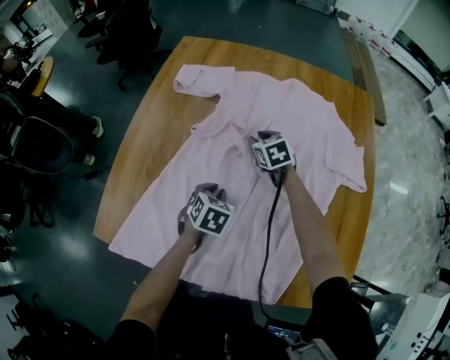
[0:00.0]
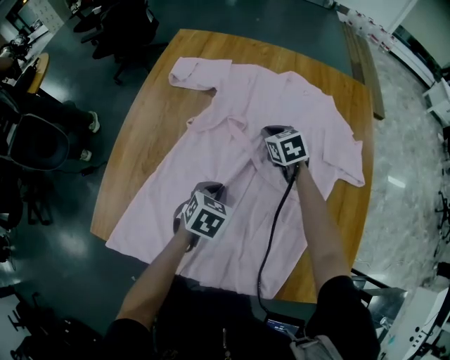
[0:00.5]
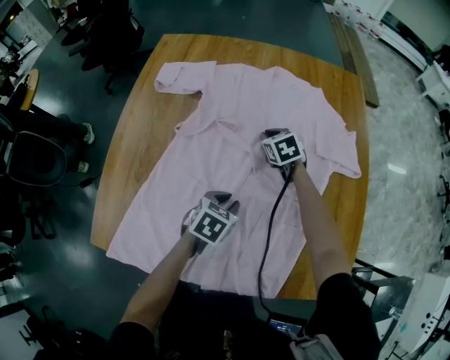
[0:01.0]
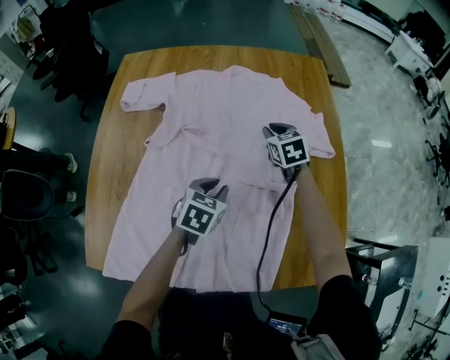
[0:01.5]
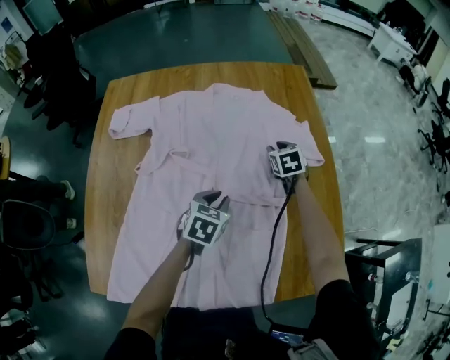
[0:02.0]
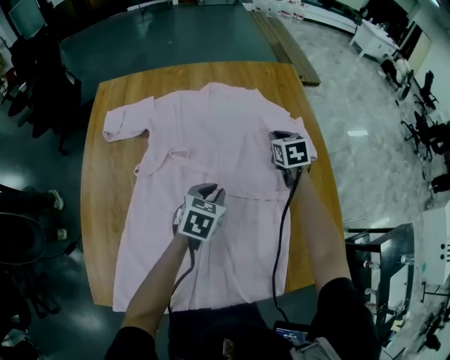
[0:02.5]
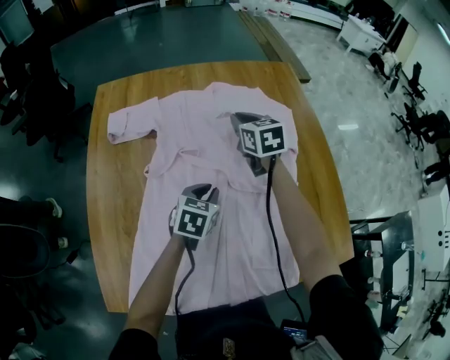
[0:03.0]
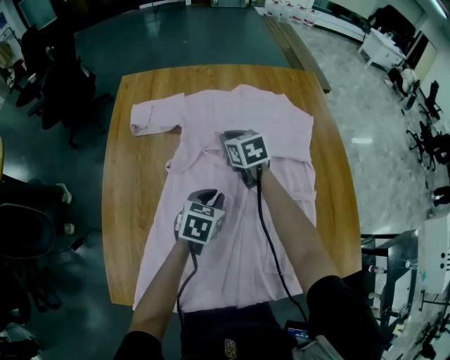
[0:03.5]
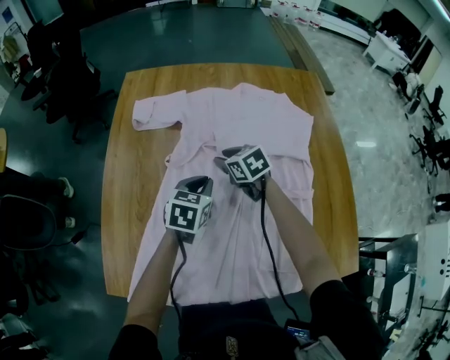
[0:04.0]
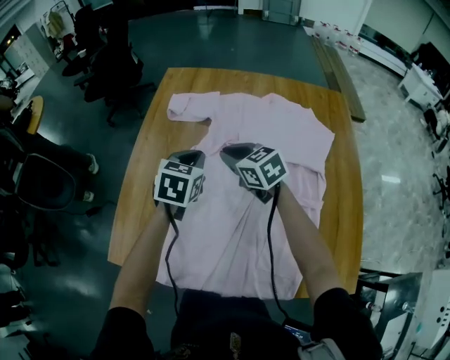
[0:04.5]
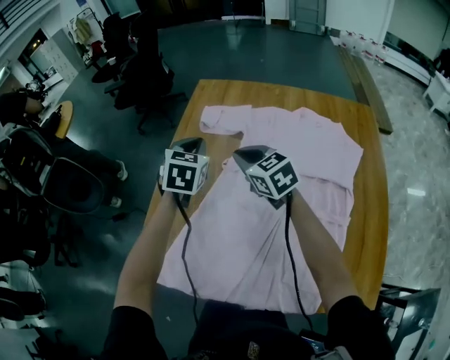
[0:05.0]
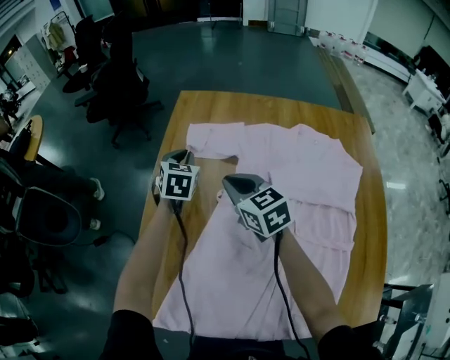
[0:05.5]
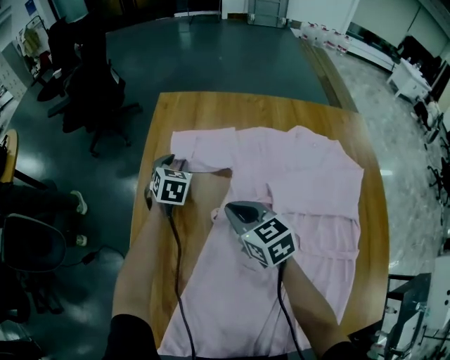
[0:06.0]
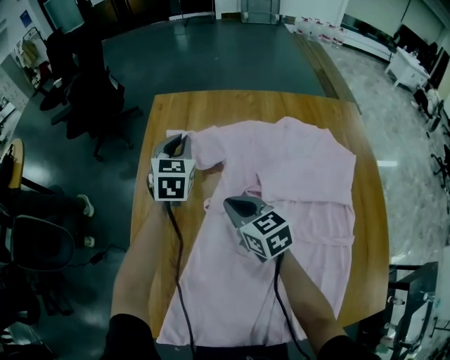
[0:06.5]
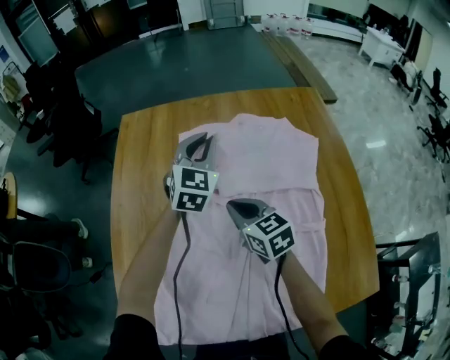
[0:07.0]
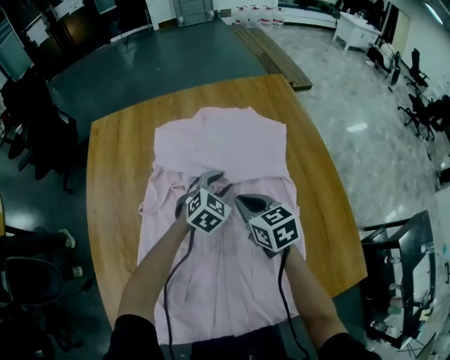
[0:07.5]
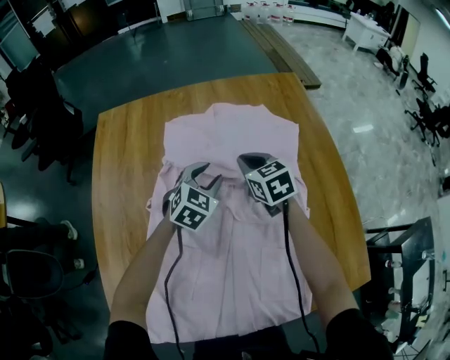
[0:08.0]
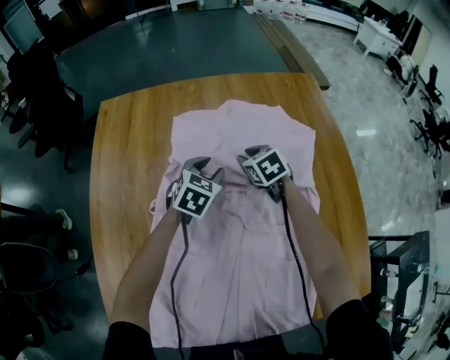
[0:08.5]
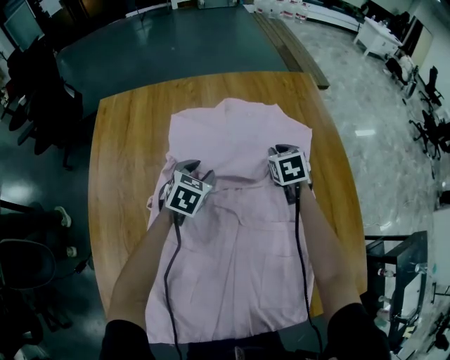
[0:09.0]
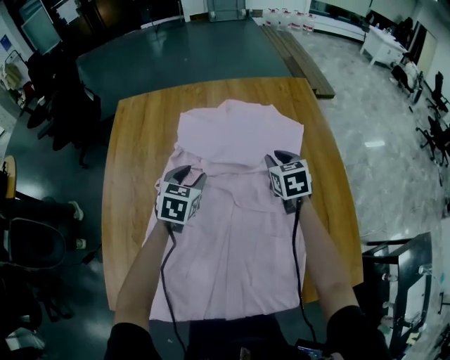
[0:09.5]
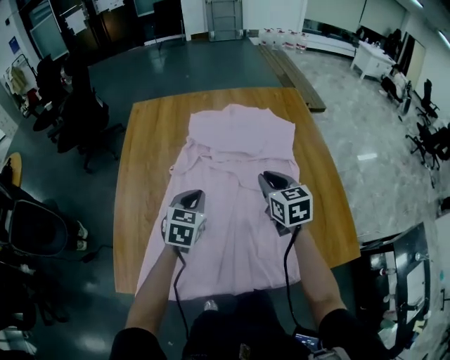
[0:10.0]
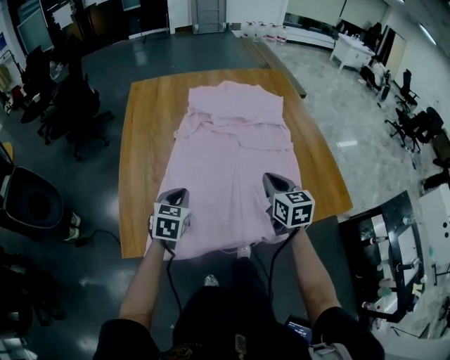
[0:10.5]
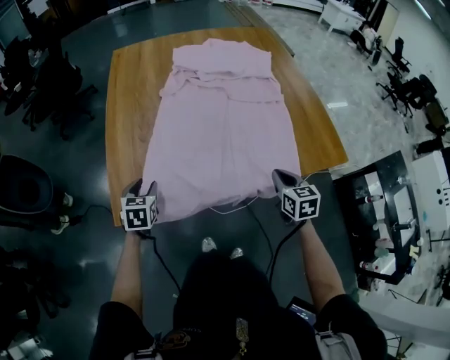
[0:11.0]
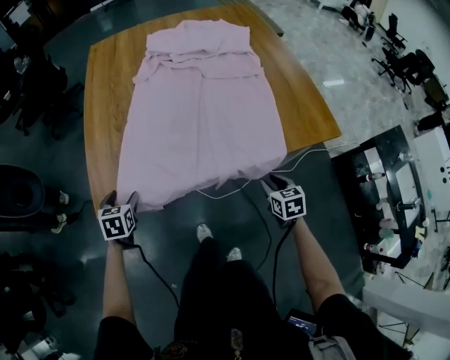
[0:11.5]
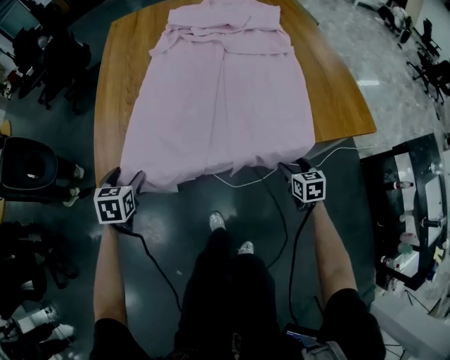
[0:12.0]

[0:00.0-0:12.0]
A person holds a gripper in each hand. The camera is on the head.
0:00.0 to 0:02.0: The right gripper ends up roughly 30 cm from where it was, rotates about 30 degrees, and closes and opens again. The left gripper moves roughly 15 cm, and turns by about 20 degrees.
0:02.0 to 0:04.0: The right gripper moves some 15 cm upward and comes back, and changes its angle by roughly 30 degrees; the left gripper ends up roughly 15 cm from where it was.
0:04.0 to 0:06.0: The right gripper goes roughly 15 cm to the left and forward, reaches approximately 15 cm upward, then returns, and closes its fingers, while the left gripper travels forward and to the left by roughly 35 cm, turns by approximately 30 degrees, and opens.
0:06.0 to 0:08.0: The left gripper moves some 20 cm upward and comes back, swivels about 40 degrees, and closes, then opens again; the right gripper shifts by about 30 cm, and swivels about 20 degrees.
0:08.0 to 0:10.0: The right gripper heads backward, covering about 20 cm. The left gripper moves backward and to the left, about 25 cm, changes its angle by approximately 30 degrees, and closes its fingers.
0:10.0 to 0:12.0: The left gripper travels backward, to the left and downward by about 40 cm, rotates about 20 degrees, and opens its fingers. Meanwhile the right gripper moves backward and downward, about 50 cm, turns by approximately 20 degrees, and opens.

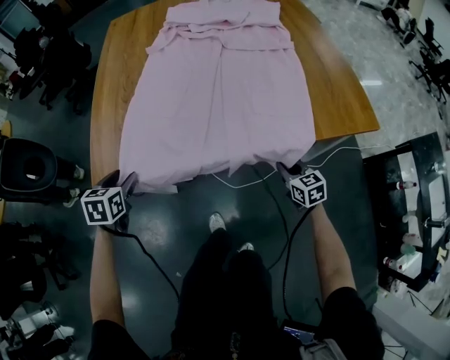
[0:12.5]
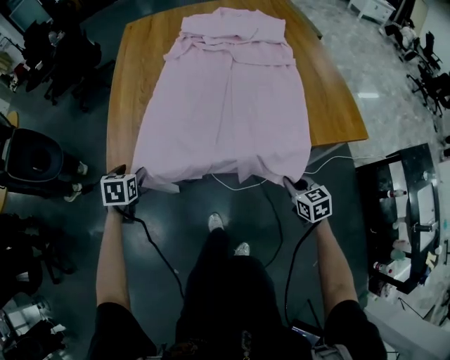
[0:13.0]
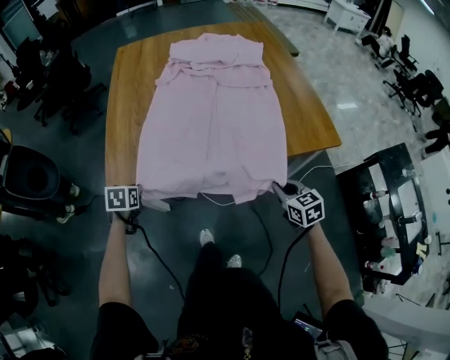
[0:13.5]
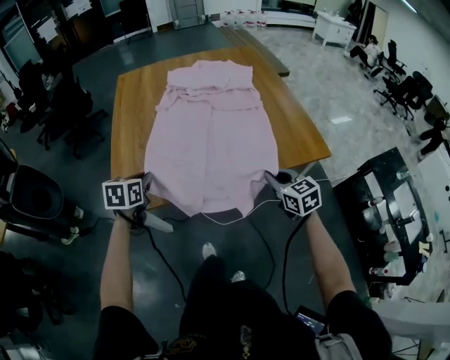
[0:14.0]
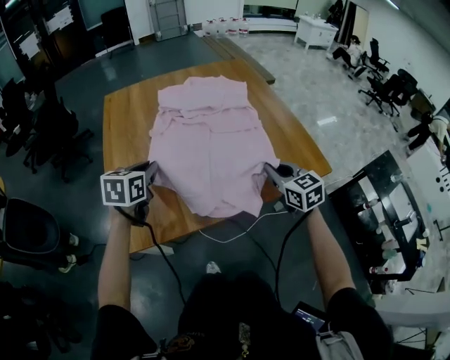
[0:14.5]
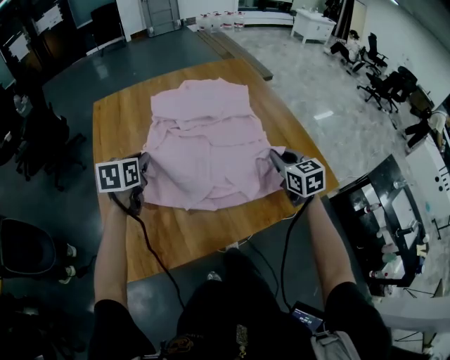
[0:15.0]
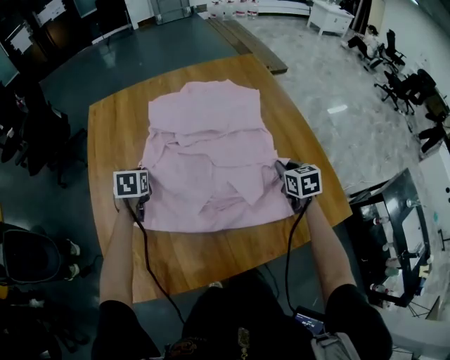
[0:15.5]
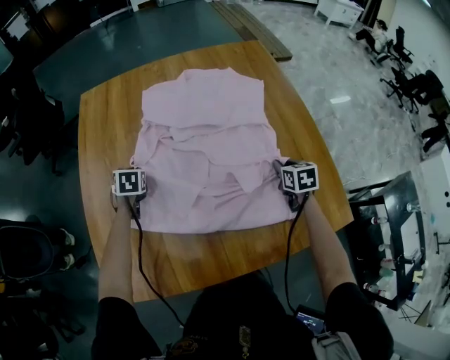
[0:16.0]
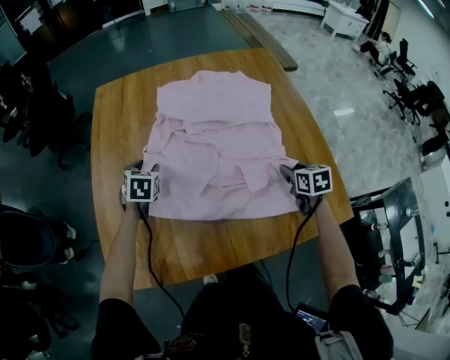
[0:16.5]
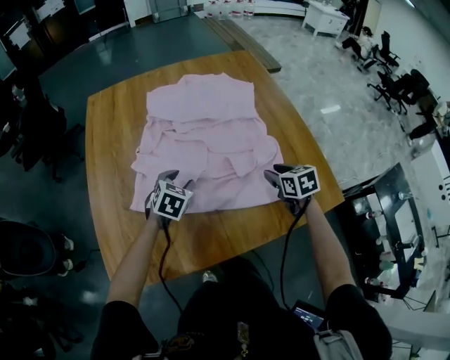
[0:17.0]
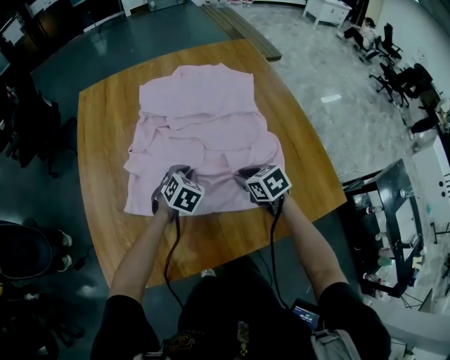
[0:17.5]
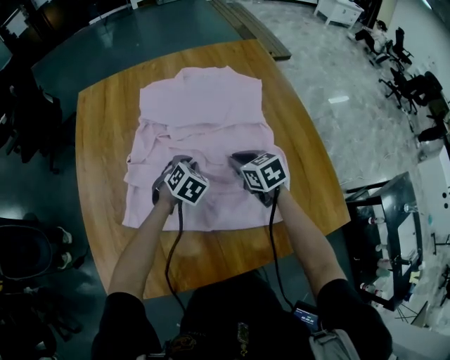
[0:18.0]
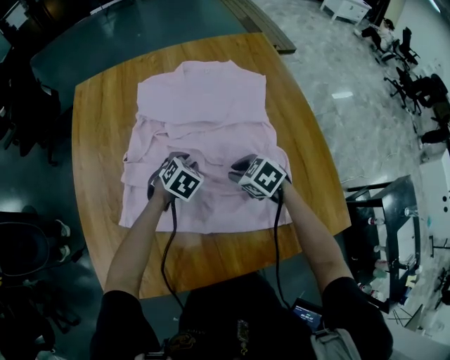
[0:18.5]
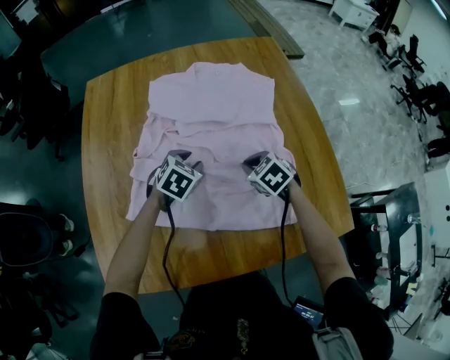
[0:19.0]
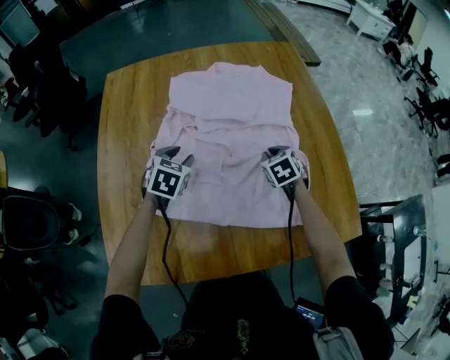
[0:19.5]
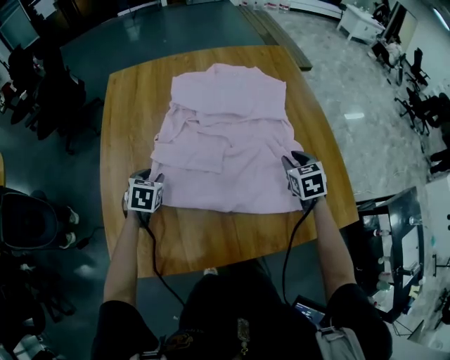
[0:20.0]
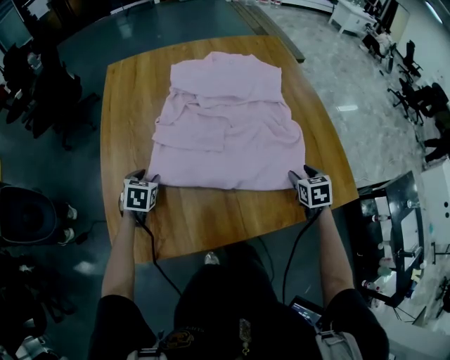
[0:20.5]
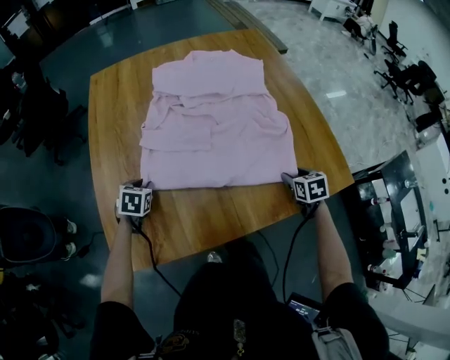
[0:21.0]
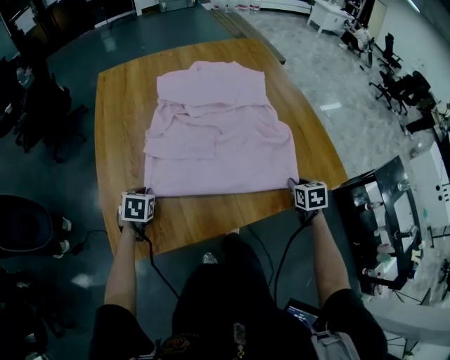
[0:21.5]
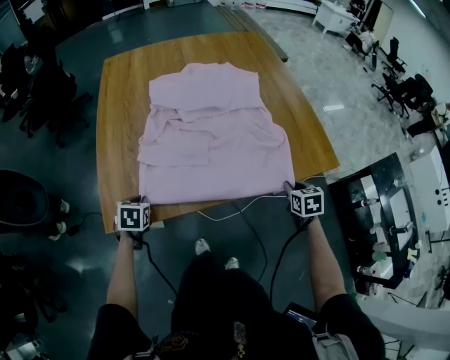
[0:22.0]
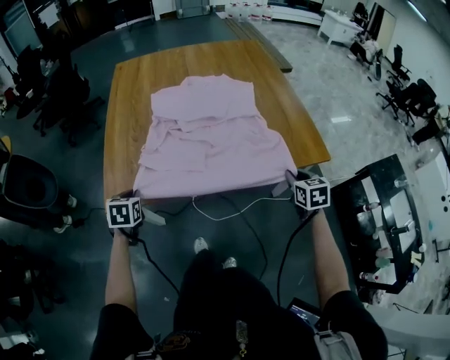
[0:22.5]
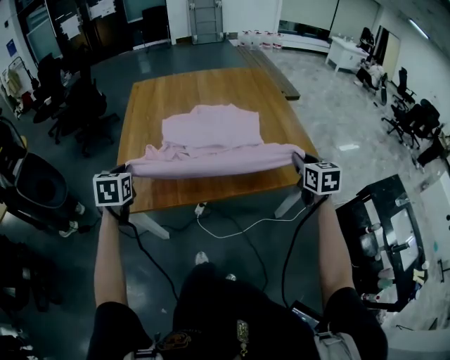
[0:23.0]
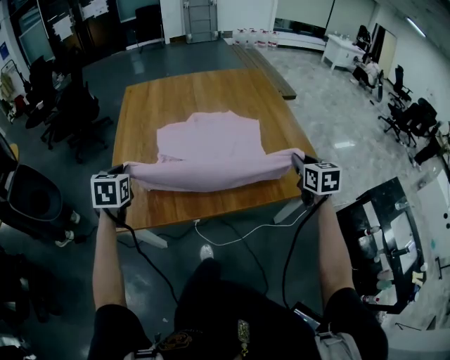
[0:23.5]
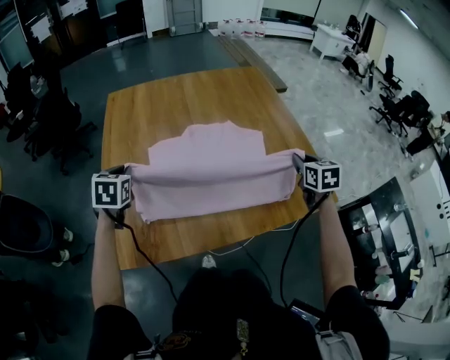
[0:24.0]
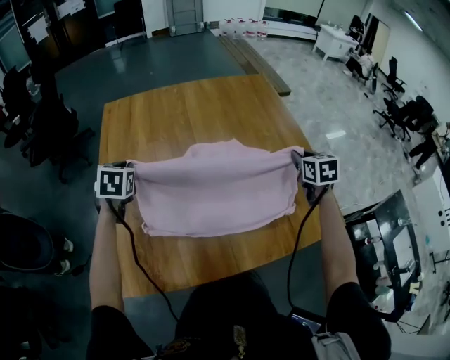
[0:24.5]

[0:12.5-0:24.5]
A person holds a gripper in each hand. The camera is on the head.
0:12.5 to 0:14.5: The left gripper shifts approximately 30 cm upward, forward and to the right, changes its angle by approximately 30 degrees, and closes up, while the right gripper goes roughly 35 cm upward.
0:14.5 to 0:16.5: The left gripper heads forward and downward, covering approximately 30 cm, rotates roughly 30 degrees, and opens its fingers, while the right gripper is displaced forward, downward and to the right by approximately 30 cm, rotates roughly 30 degrees, and opens up.
0:16.5 to 0:18.5: The right gripper moves to the left and forward, approximately 15 cm, and rotates roughly 40 degrees, while the left gripper shifts about 20 cm to the right, and turns by roughly 30 degrees.
0:18.5 to 0:20.5: The left gripper heads to the left and backward, covering approximately 30 cm, and changes its angle by some 30 degrees, while the right gripper heads backward and to the right, covering roughly 20 cm, turns by approximately 40 degrees, and opens its fingers.
0:20.5 to 0:22.5: The grippers both shift backward by approximately 25 cm. The left gripper closes up; the right gripper closes up.
0:22.5 to 0:24.5: The two grippers go roughly 35 cm forward.

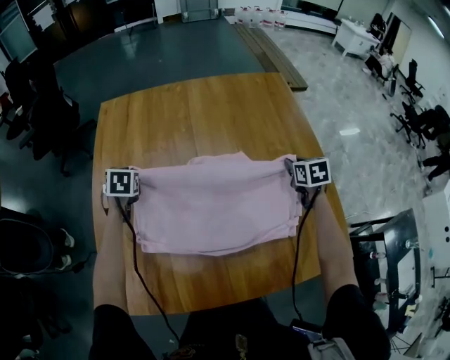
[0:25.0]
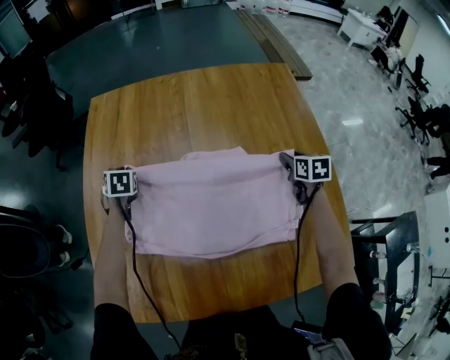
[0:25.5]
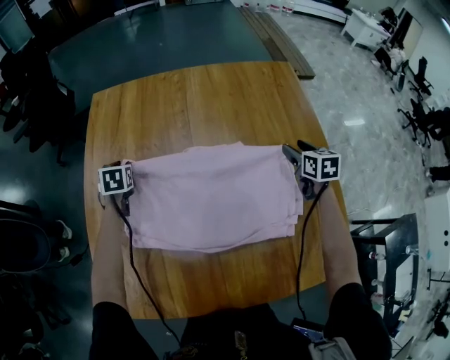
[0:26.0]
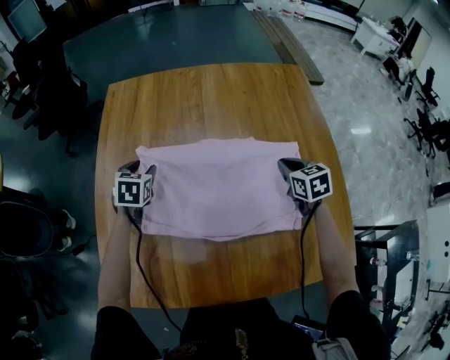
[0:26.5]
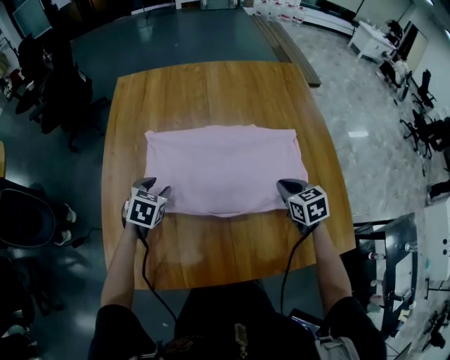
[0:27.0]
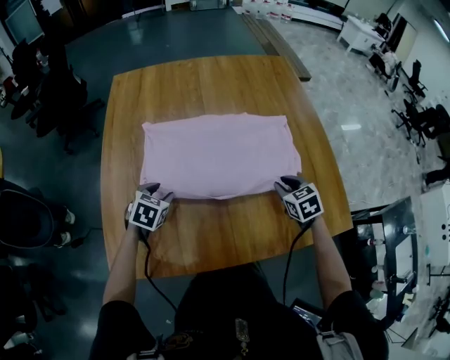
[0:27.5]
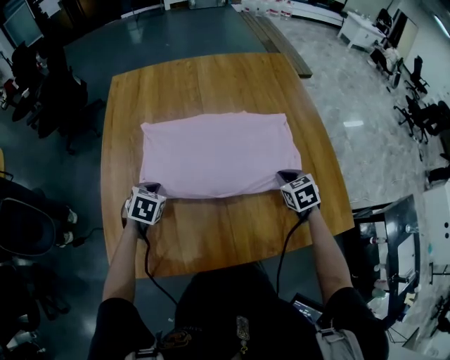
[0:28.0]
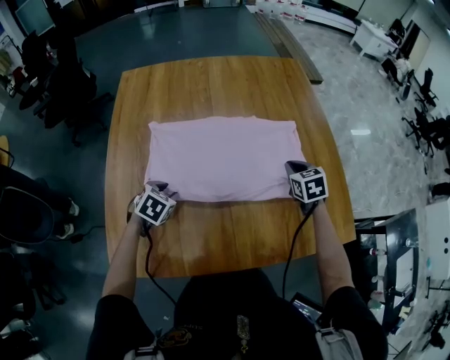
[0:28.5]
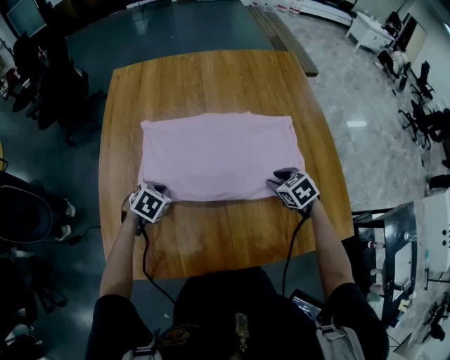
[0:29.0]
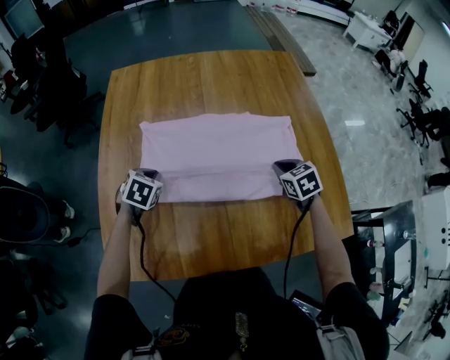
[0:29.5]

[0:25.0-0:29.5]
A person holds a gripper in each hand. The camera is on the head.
0:25.0 to 0:27.0: The left gripper shifts about 15 cm backward, and opens. Meanwhile the right gripper is displaced to the left and backward by approximately 20 cm, and opens, then closes again.
0:27.0 to 0:29.5: The left gripper closes up; the right gripper swings forward and backward, some 10 cm each way, with 3 reversals, and opens and closes again.
